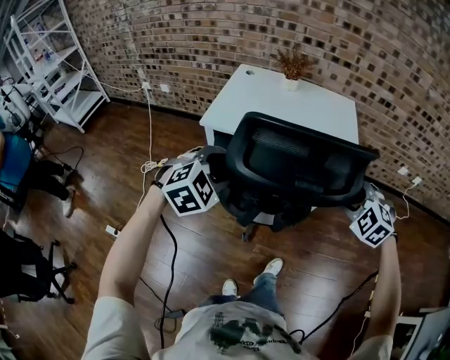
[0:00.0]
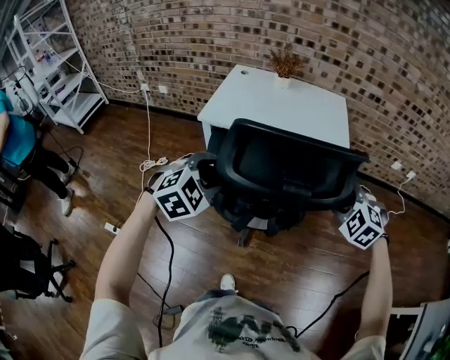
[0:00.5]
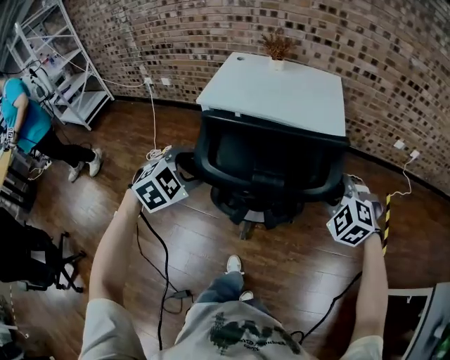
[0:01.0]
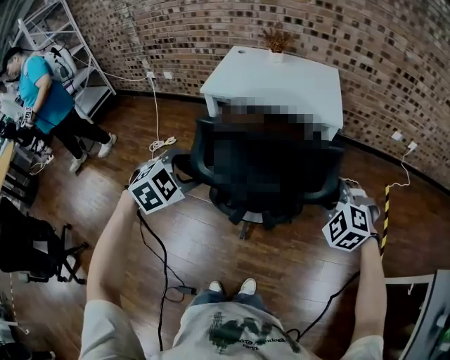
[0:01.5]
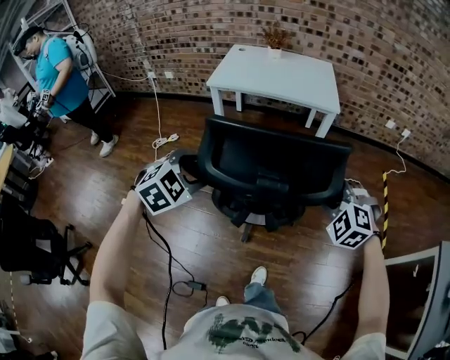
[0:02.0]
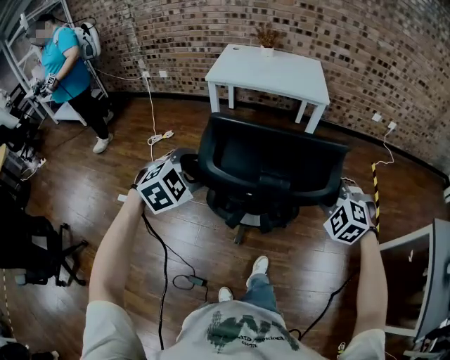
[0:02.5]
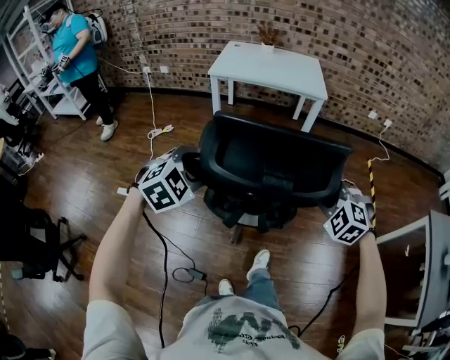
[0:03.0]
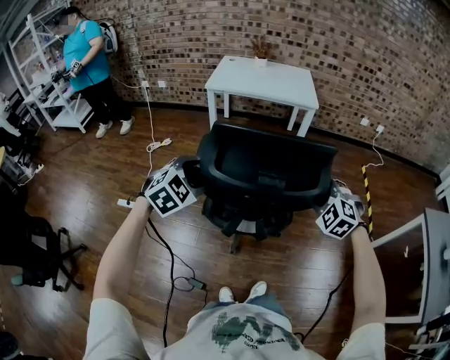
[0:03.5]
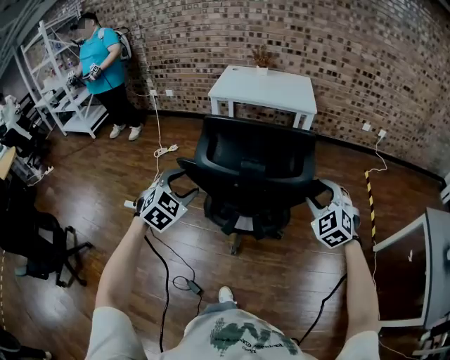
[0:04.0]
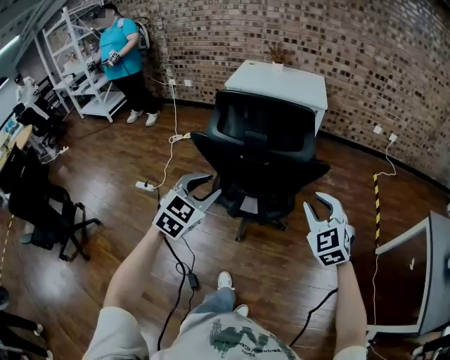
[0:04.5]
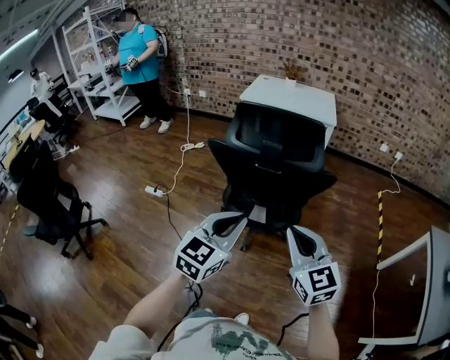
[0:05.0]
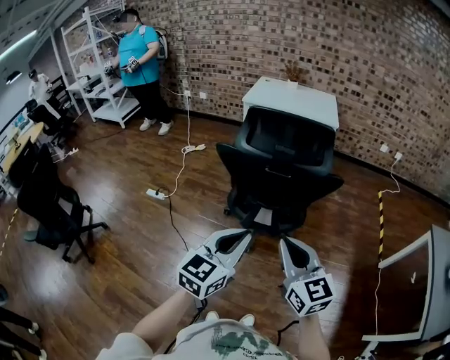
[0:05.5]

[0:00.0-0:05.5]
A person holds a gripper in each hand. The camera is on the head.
0:00.0 to 0:02.0: The two grippers go approximately 35 cm backward.
0:02.0 to 0:03.5: The two grippers go approximately 15 cm backward.
0:03.5 to 0:05.5: Both grippers move backward, some 30 cm. The left gripper tilts its fingers approximately 30 degrees upward, and closes up. The right gripper tilts its fingers approximately 40 degrees upward, and closes up.

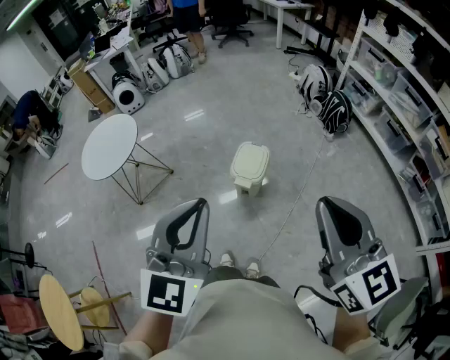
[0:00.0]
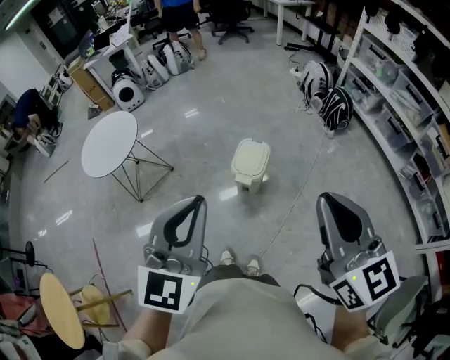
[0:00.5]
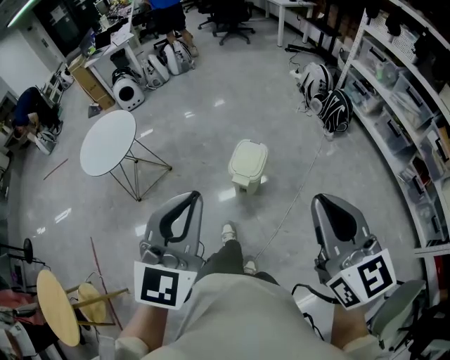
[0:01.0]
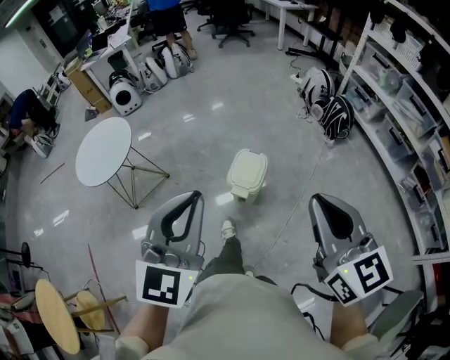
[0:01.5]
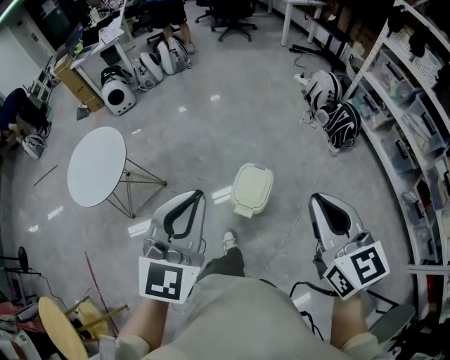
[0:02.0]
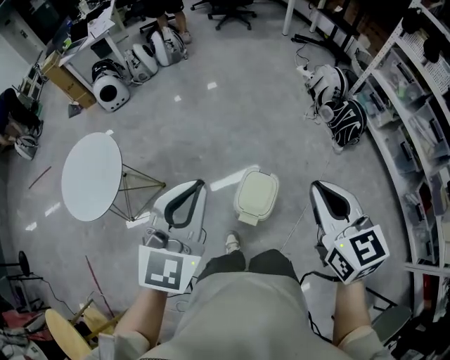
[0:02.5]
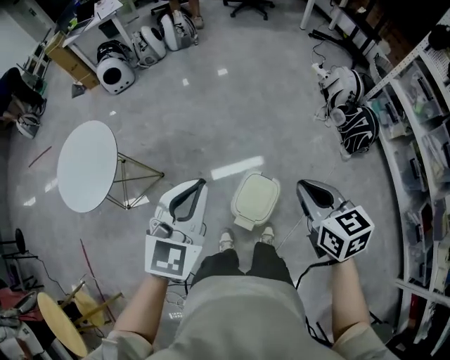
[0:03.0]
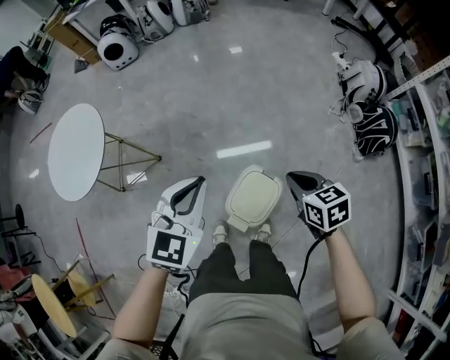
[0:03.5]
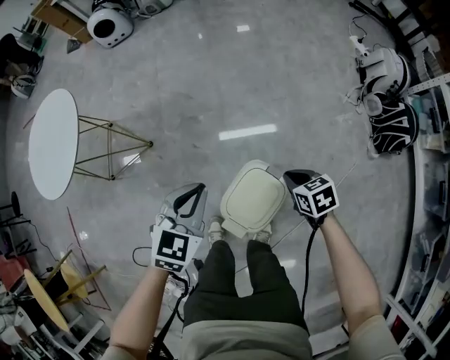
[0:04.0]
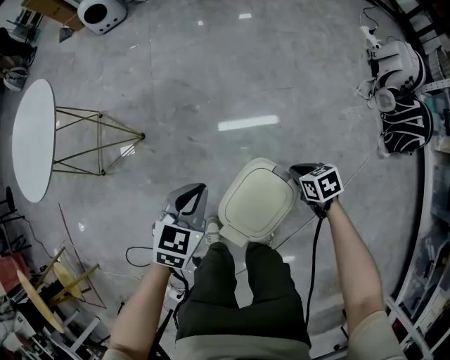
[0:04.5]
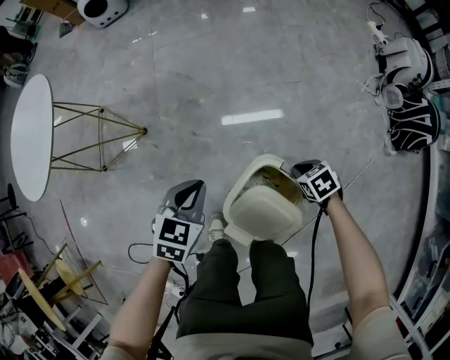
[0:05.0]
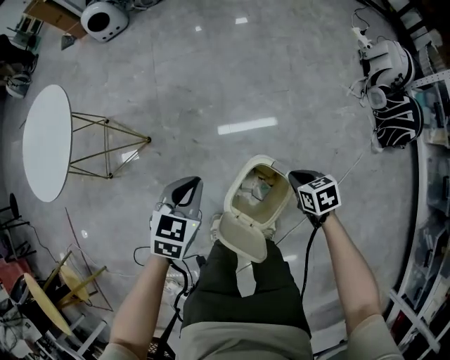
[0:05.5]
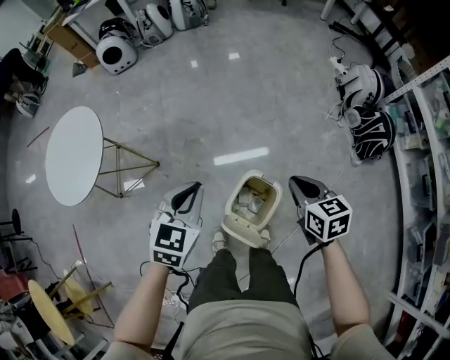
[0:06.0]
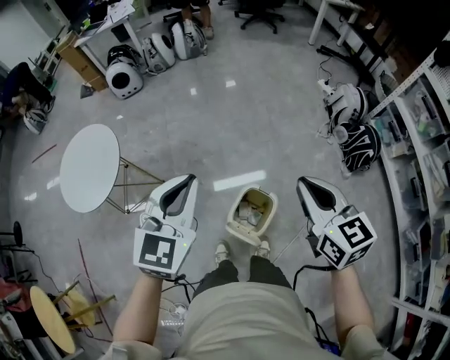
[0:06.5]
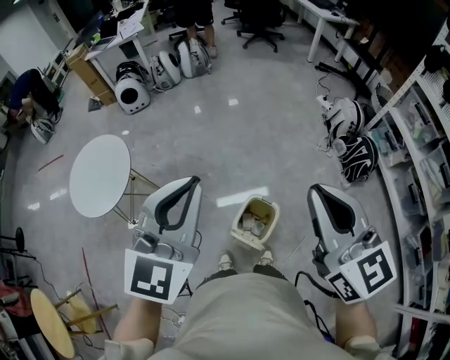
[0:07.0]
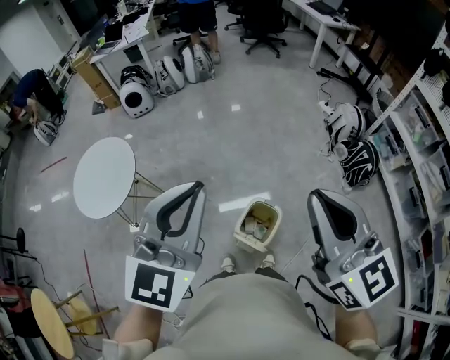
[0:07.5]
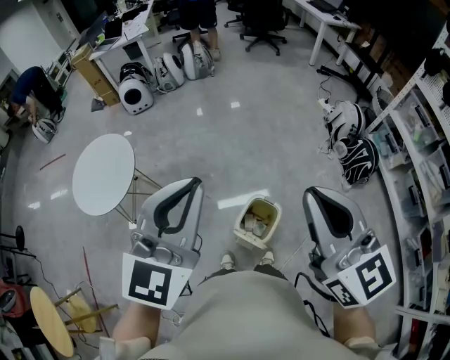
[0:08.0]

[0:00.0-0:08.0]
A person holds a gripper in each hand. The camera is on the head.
0:00.0 to 0:02.0: The grippers both shift forward by roughly 25 cm.
0:02.0 to 0:04.0: The grippers both shift downward by about 50 cm. The right gripper angles its fingers downward, by roughly 40 degrees. Meanwhile the left gripper rotates roughly 30 degrees.
0:04.0 to 0:06.0: The left gripper moves upward, about 10 cm; the right gripper shifts some 20 cm upward, and changes its angle by about 20 degrees.
0:06.0 to 0:08.0: Both grippers move upward, some 40 cm. The left gripper points its fingers some 30 degrees further upward, while the right gripper tips its fingers upward by about 40 degrees.

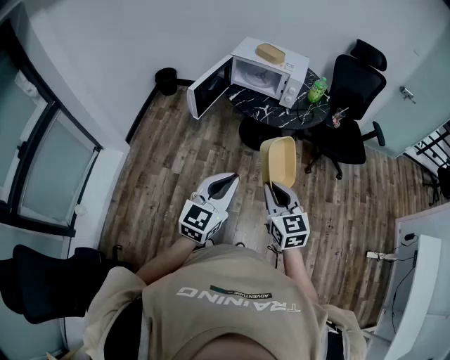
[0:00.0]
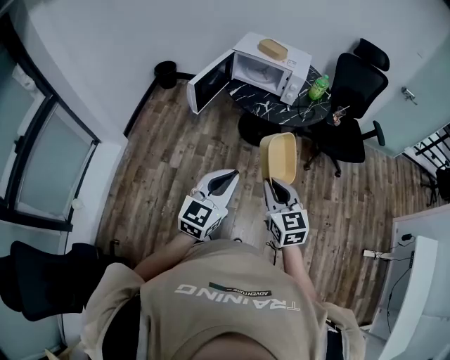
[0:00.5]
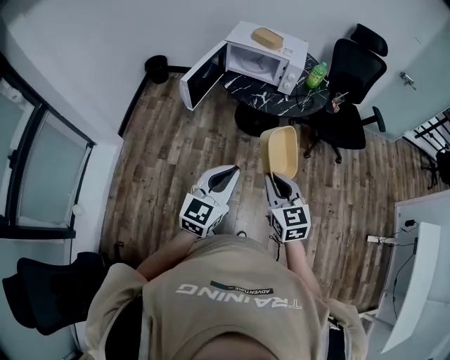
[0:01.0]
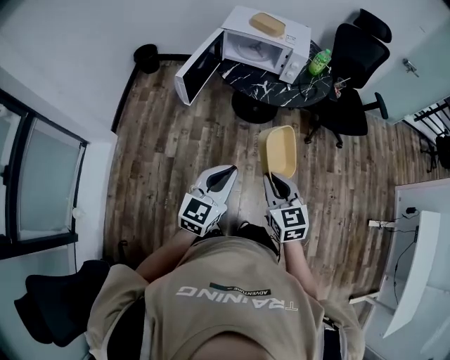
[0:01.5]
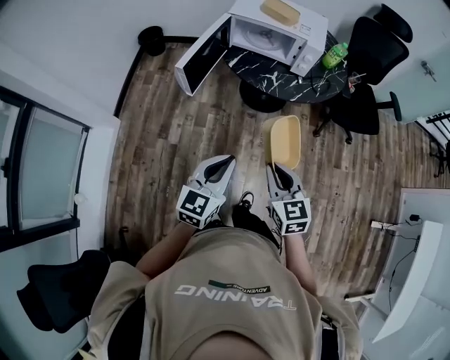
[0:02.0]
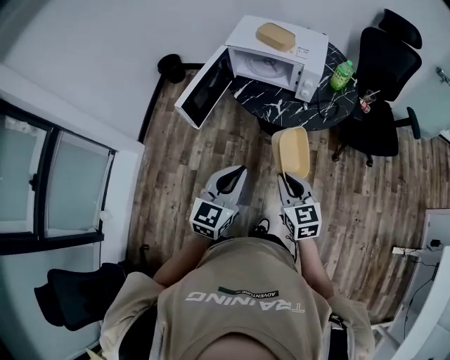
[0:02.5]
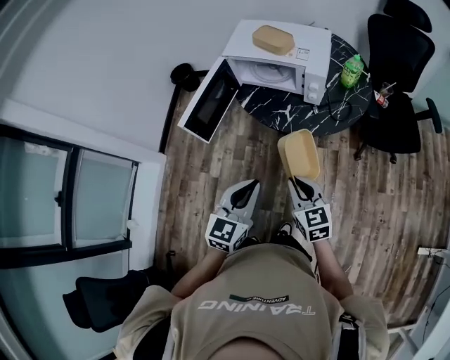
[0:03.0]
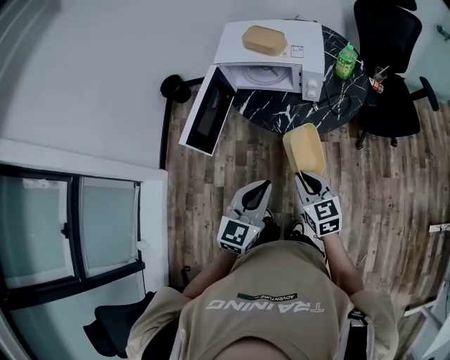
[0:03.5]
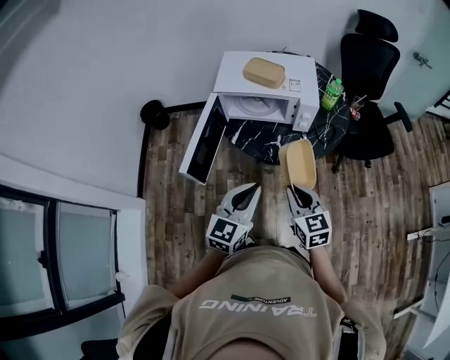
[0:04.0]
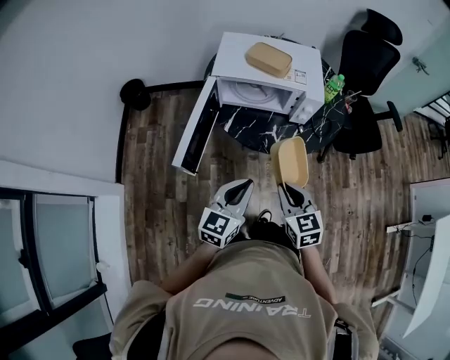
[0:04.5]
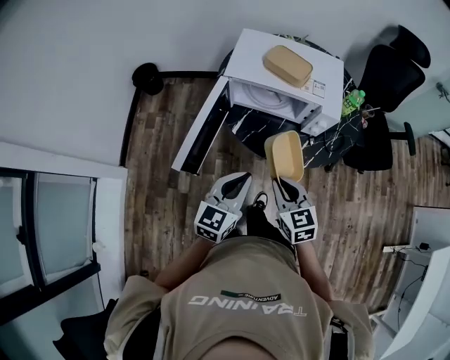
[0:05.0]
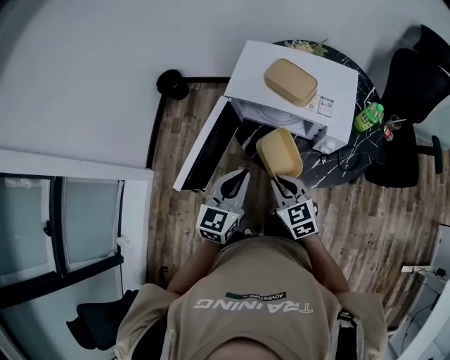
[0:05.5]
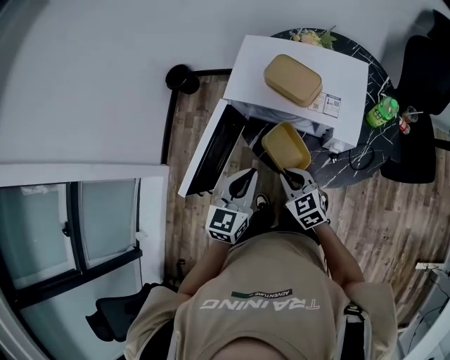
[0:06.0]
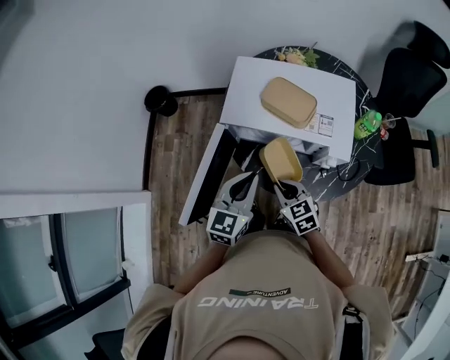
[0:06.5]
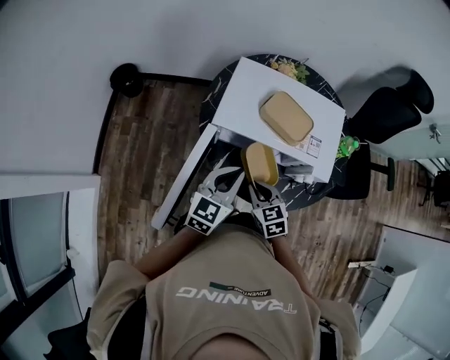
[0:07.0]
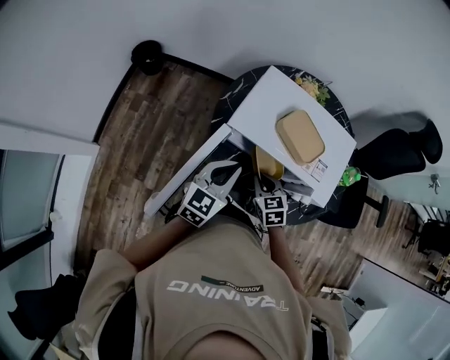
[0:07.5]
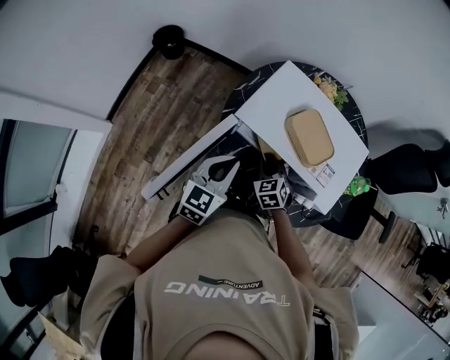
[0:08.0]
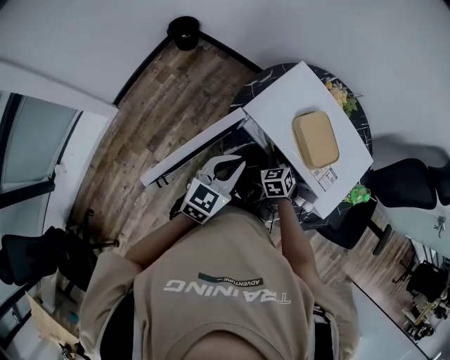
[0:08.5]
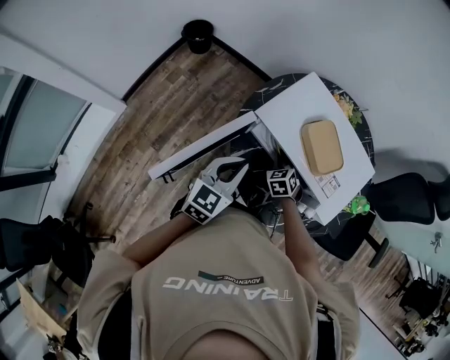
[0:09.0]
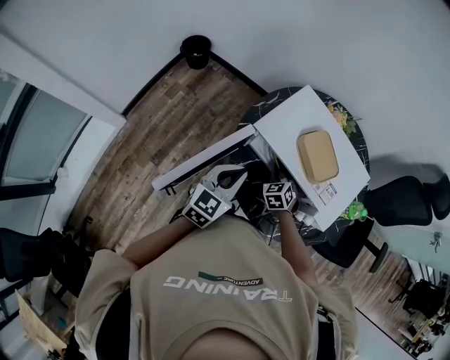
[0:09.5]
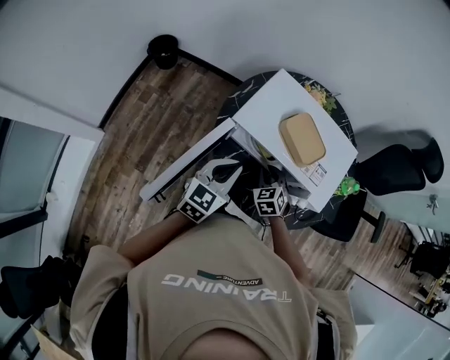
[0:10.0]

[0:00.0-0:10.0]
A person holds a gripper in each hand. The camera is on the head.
0:00.0 to 0:02.0: The right gripper shifts approximately 15 cm forward and downward, while the left gripper travels forward, downward and to the left by about 15 cm.
0:02.0 to 0:04.0: The grippers both shift forward by roughly 20 cm.
0:04.0 to 0:06.0: The left gripper shifts by approximately 20 cm, and swivels about 20 degrees. The right gripper changes place by roughly 25 cm, and turns by some 30 degrees.
0:06.0 to 0:08.0: The left gripper moves forward and to the left, about 15 cm. Meanwhile the right gripper moves forward and downward, about 20 cm, and turns by some 30 degrees.
0:08.0 to 0:10.0: The grippers move only a little.

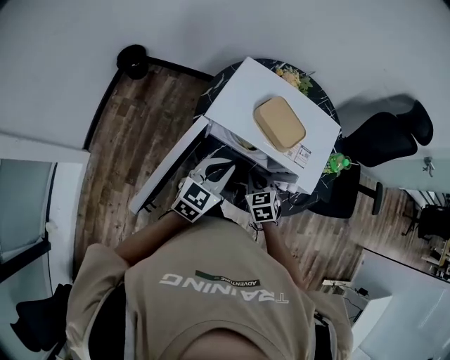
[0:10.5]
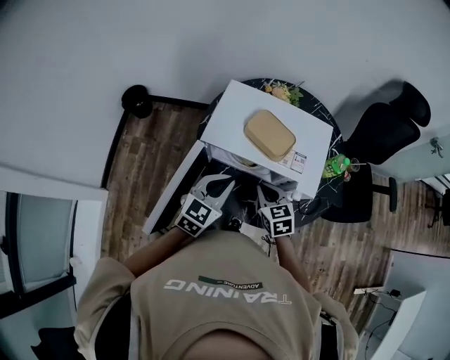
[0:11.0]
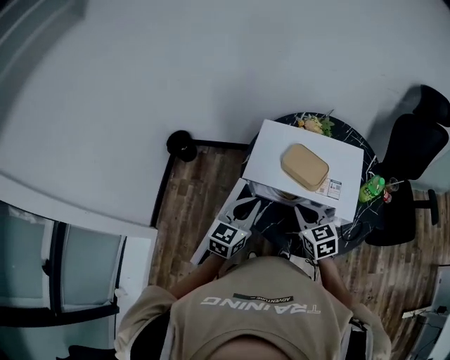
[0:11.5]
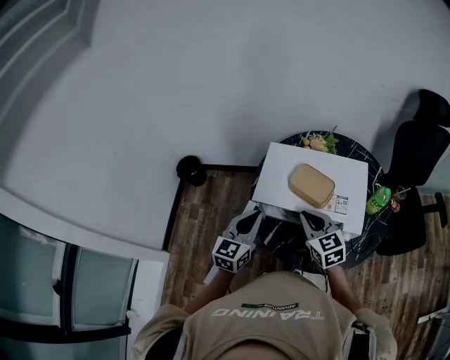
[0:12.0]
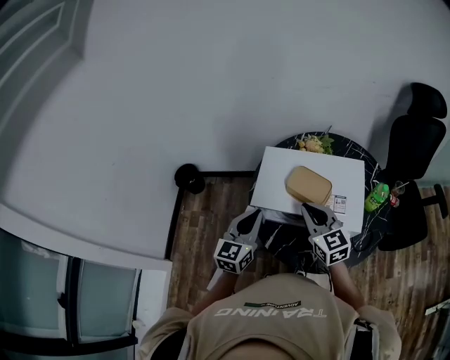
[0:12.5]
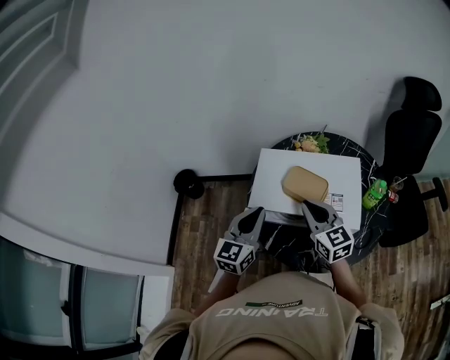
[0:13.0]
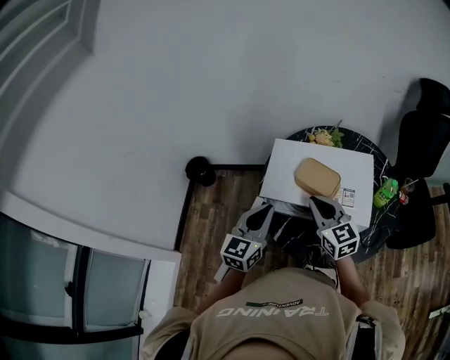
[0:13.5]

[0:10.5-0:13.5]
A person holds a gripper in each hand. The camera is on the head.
0:10.5 to 0:12.0: The left gripper shifts about 10 cm upward and to the left. Meanwhile the right gripper travels upward by some 20 cm, and rotates approximately 30 degrees.
